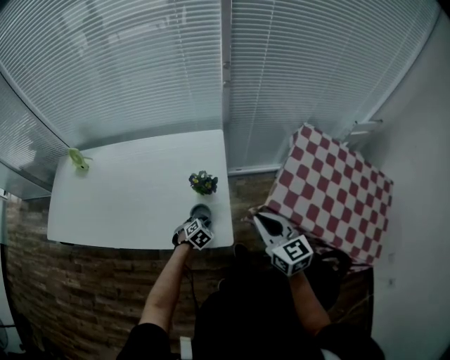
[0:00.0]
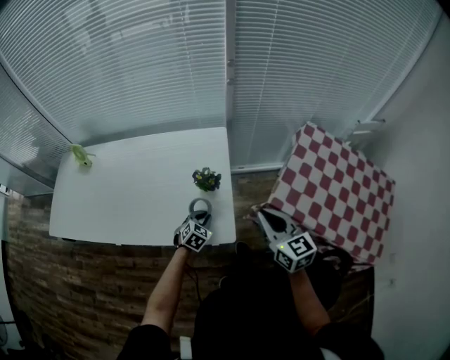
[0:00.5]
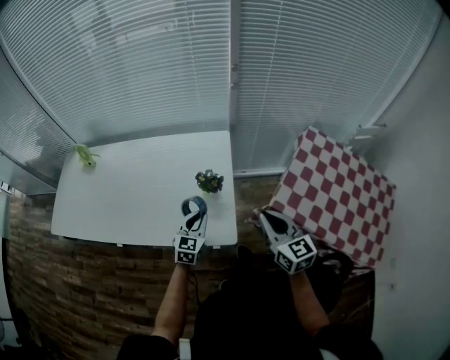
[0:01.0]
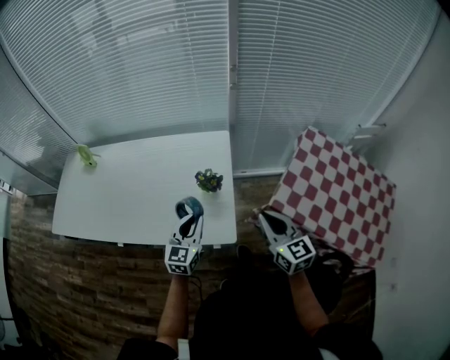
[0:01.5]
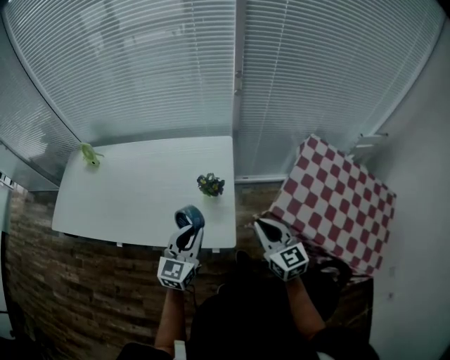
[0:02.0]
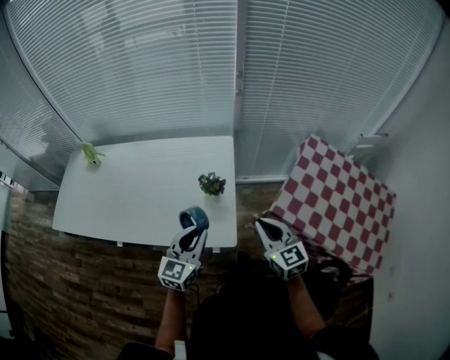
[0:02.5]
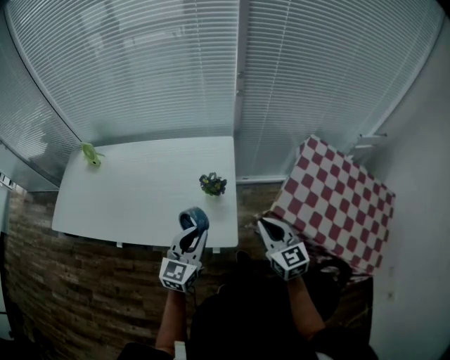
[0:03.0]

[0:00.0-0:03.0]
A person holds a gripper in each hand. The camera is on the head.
0:00.0 to 0:01.5: The left gripper travels upward by some 25 cm, and points its fingers roughly 50 degrees further upward.
0:01.5 to 0:03.0: The left gripper travels upward and backward by some 5 cm.

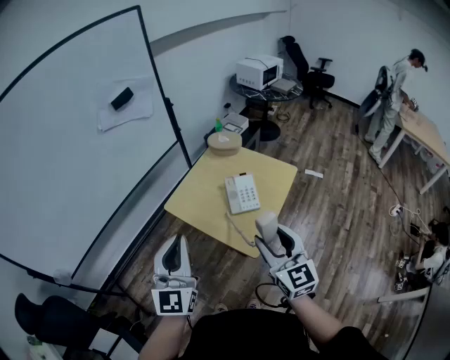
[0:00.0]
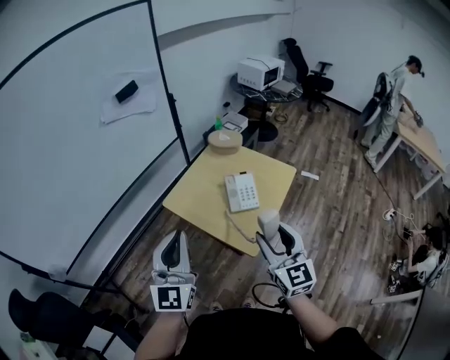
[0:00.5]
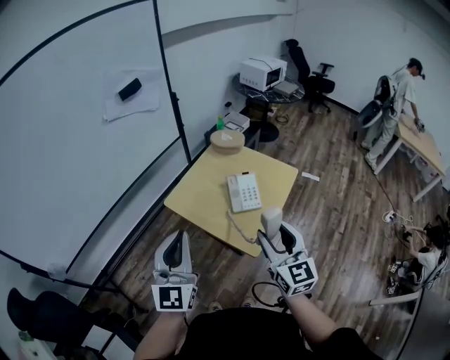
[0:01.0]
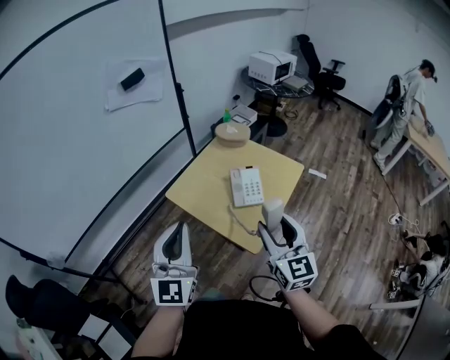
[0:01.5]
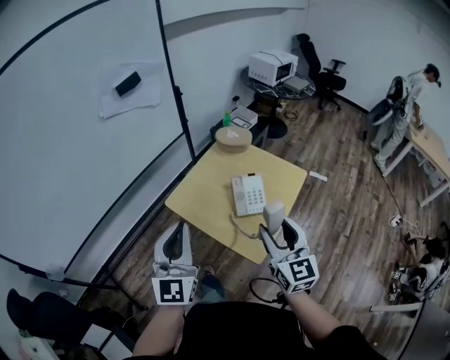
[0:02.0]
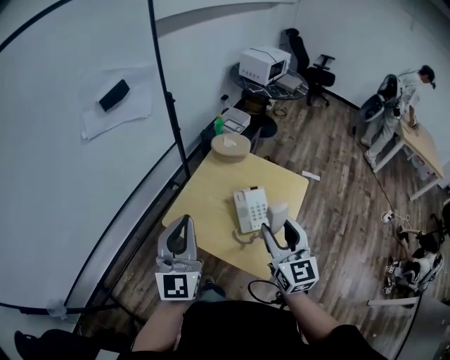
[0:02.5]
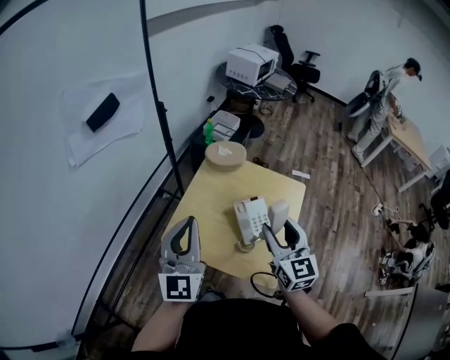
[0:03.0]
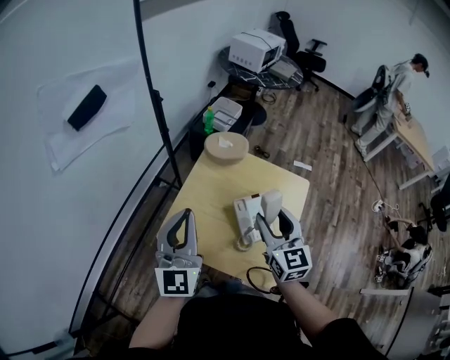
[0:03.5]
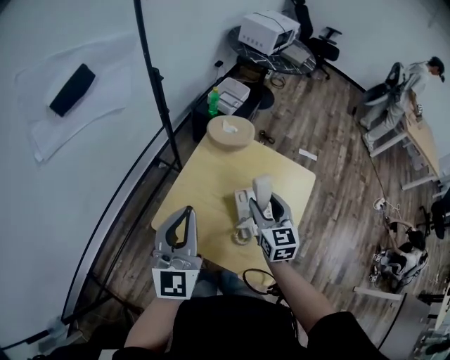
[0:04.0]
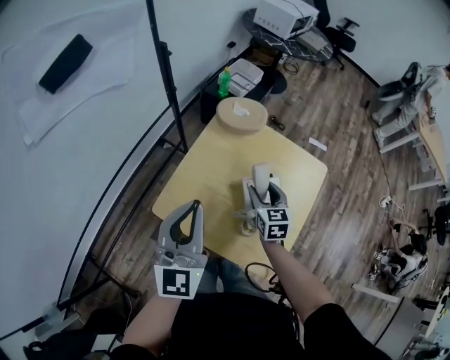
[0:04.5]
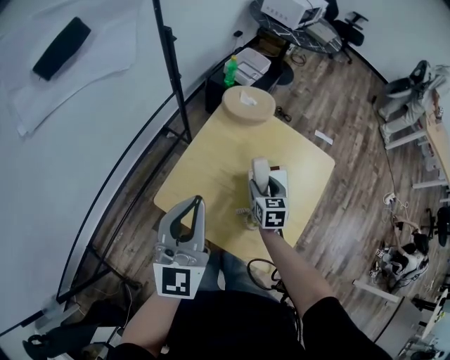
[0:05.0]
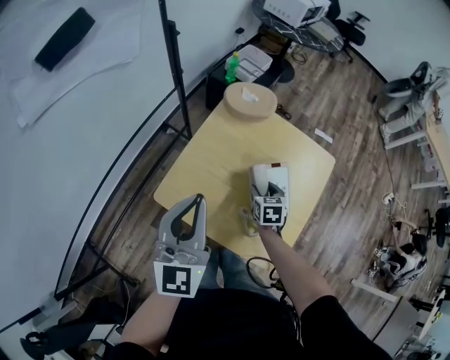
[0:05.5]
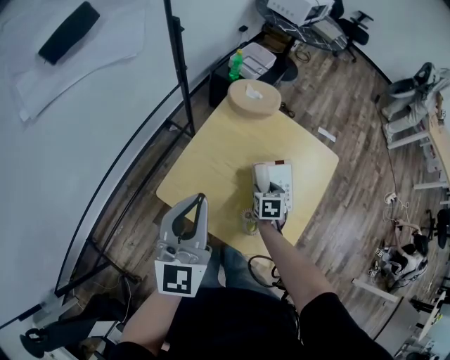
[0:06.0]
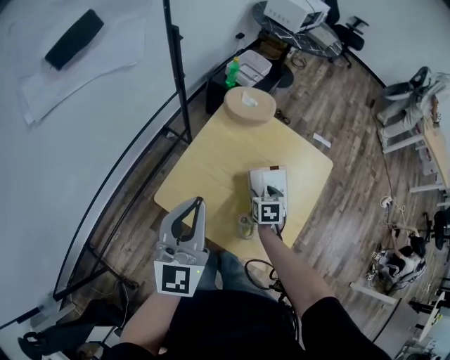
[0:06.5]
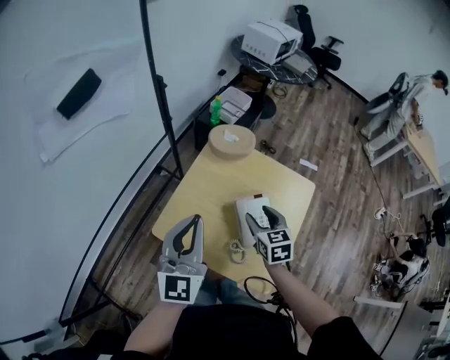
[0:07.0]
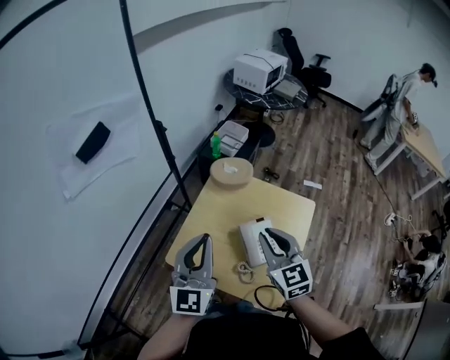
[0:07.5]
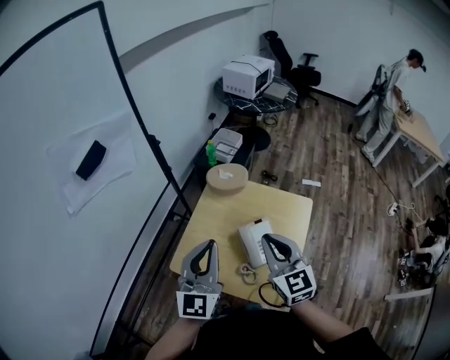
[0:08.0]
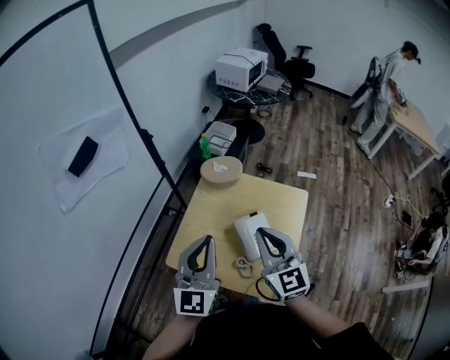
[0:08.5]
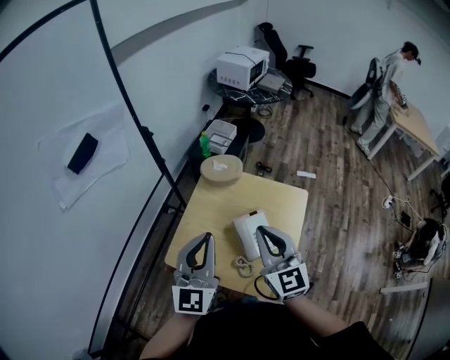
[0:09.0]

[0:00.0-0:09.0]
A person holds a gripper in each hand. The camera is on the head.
0:00.0 to 0:02.0: The grippers both shift forward by some 10 cm.
0:02.0 to 0:04.5: The left gripper moves forward, about 30 cm; the right gripper goes about 40 cm forward and downward, and changes its angle by about 30 degrees.
0:04.5 to 0:07.0: The right gripper travels downward and back again, about 15 cm each way.
0:07.0 to 0:09.0: The right gripper shifts approximately 20 cm upward, tips its fingers upward by about 30 degrees, and closes its fingers. Meanwhile the left gripper shifts approximately 10 cm upward and to the right.

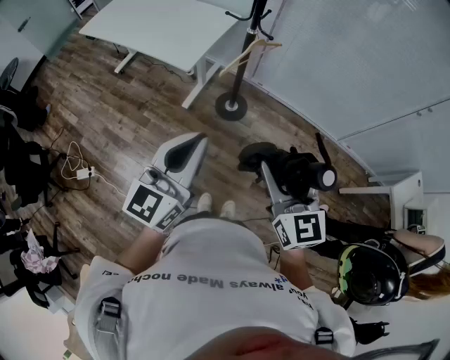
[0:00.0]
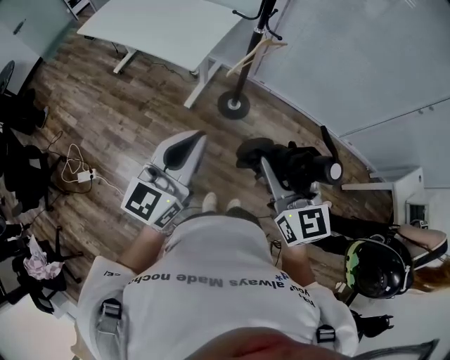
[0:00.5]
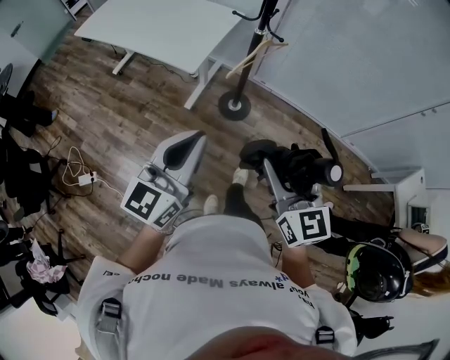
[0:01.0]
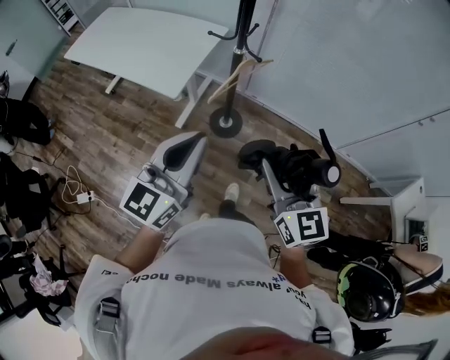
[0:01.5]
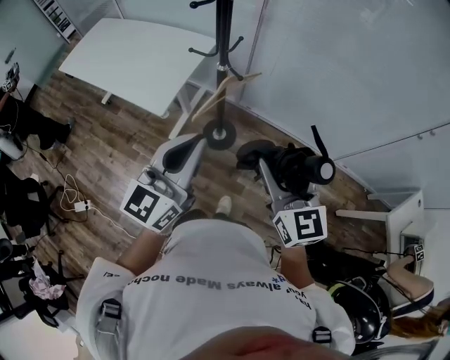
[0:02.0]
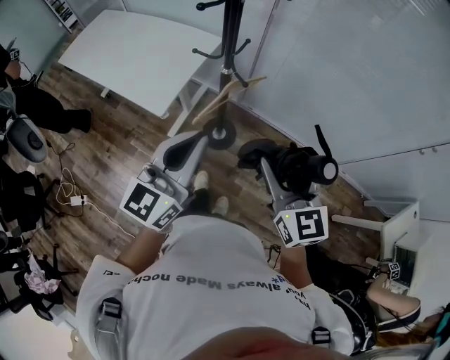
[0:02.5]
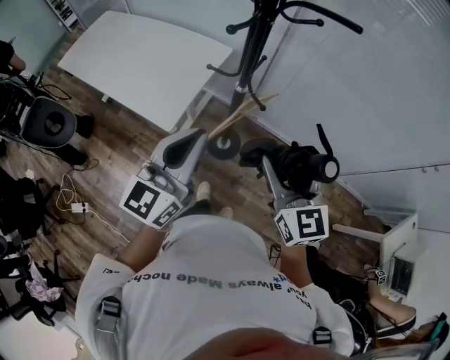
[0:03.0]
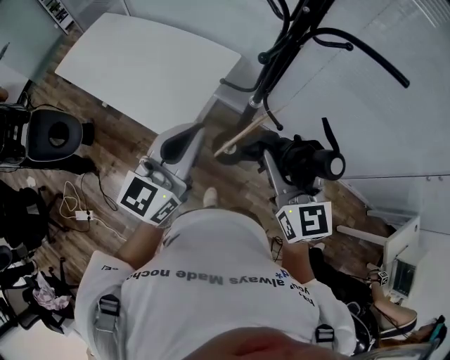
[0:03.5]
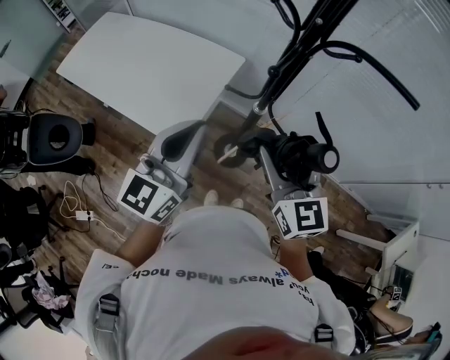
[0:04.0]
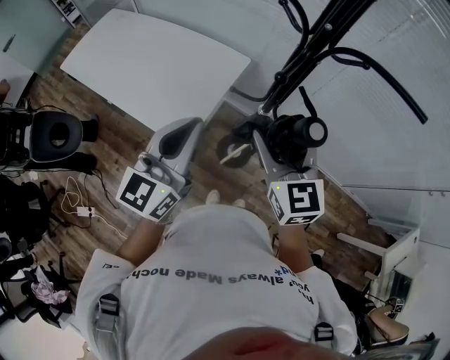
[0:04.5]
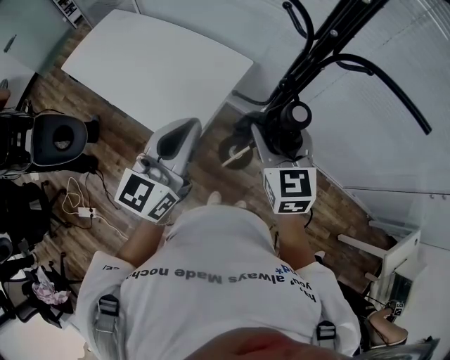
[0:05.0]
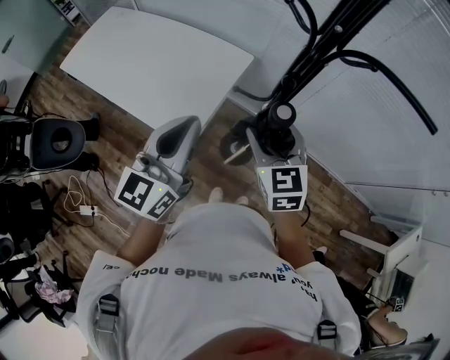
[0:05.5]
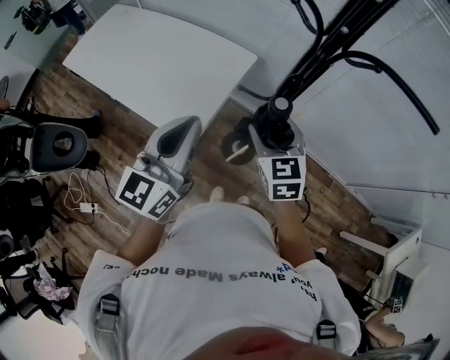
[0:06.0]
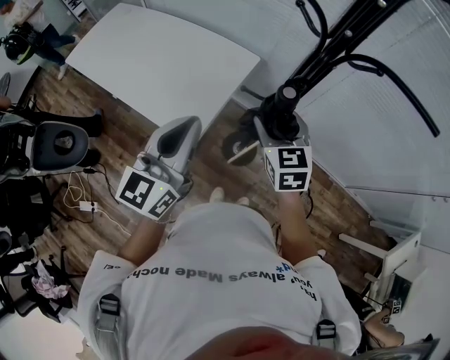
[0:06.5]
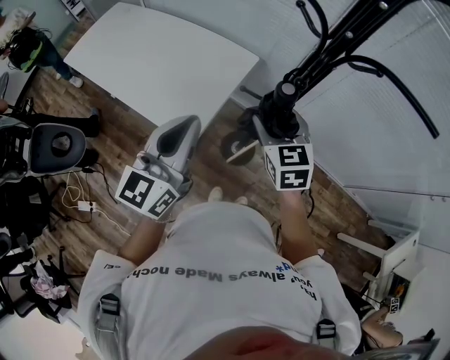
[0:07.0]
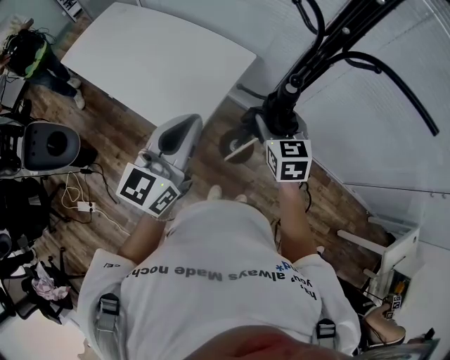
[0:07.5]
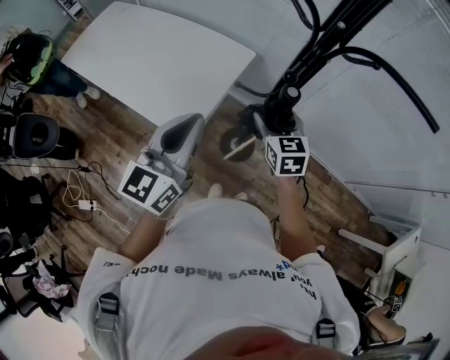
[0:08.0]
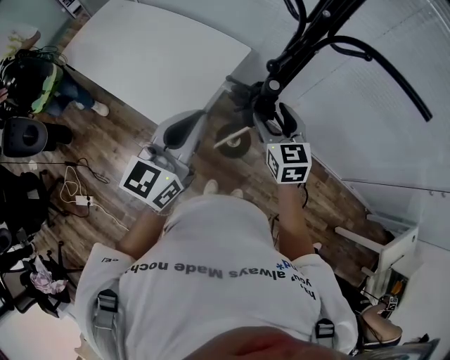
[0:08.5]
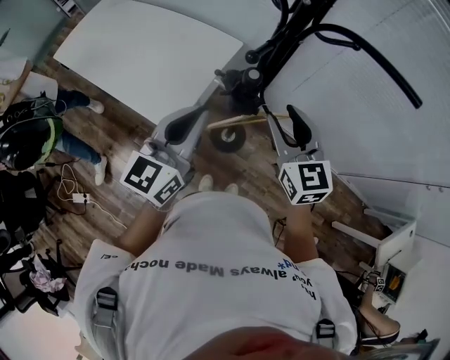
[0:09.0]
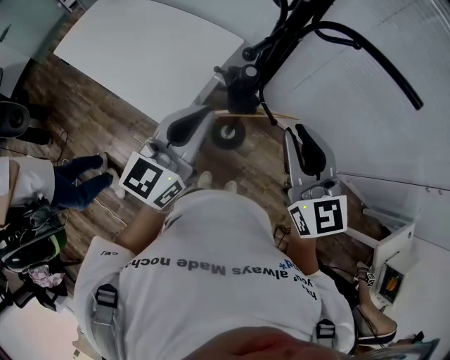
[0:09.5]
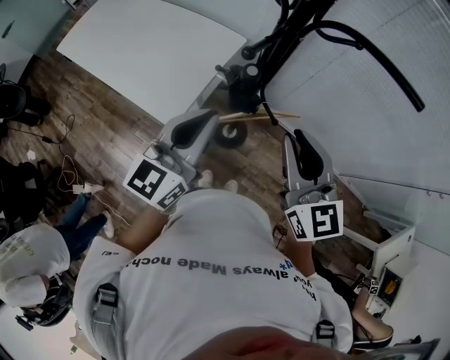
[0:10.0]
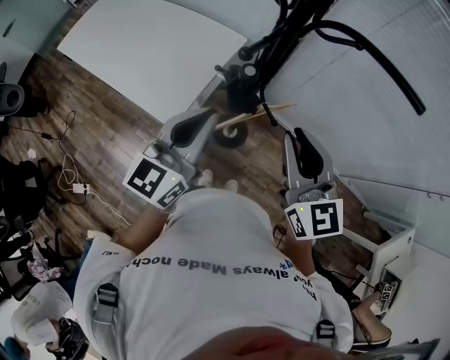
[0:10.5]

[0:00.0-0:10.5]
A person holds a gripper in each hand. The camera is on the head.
0:00.0 to 0:02.0: The grippers both shift forward by some 25 cm.
0:02.0 to 0:04.0: Both grippers move forward and to the left, some 35 cm.
0:04.0 to 0:06.5: The left gripper changes place by approximately 5 cm. Meanwhile the right gripper is displaced forward and downward by roughly 15 cm.
0:06.5 to 0:08.5: The left gripper goes approximately 5 cm to the right. Meanwhile the right gripper changes place by roughly 5 cm.
0:08.5 to 0:10.5: The right gripper is displaced upward, backward and to the right by roughly 15 cm, and closes its fingers. Meanwhile the left gripper goes some 5 cm to the right.

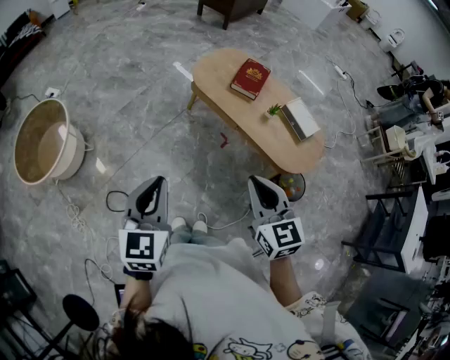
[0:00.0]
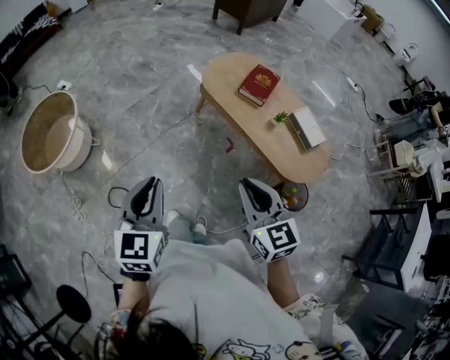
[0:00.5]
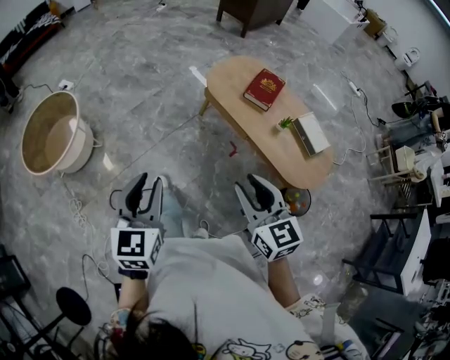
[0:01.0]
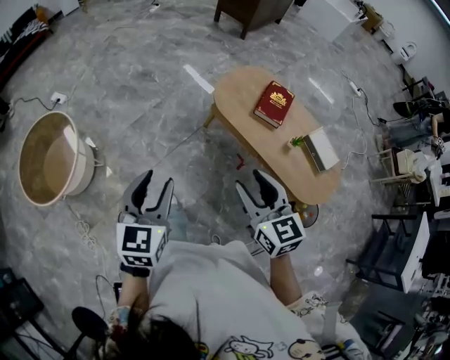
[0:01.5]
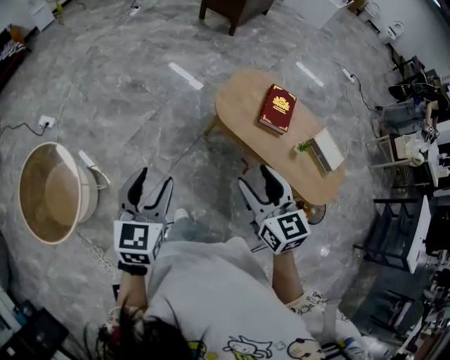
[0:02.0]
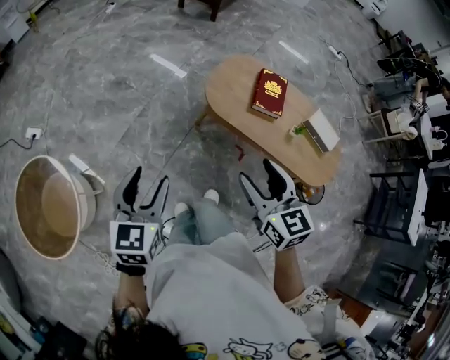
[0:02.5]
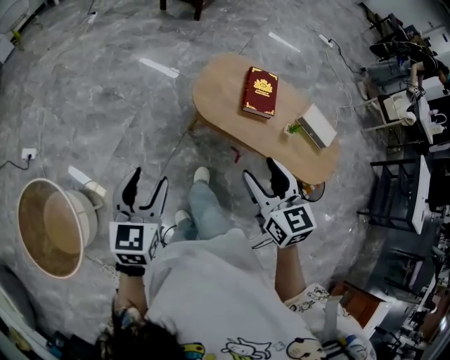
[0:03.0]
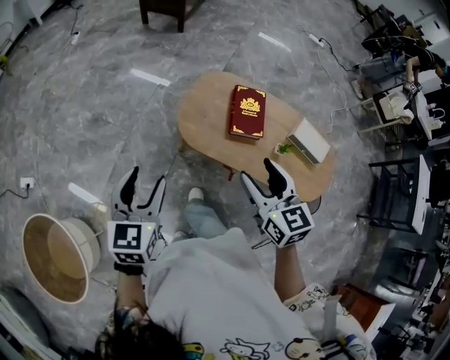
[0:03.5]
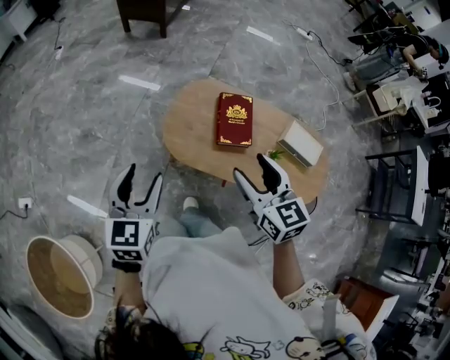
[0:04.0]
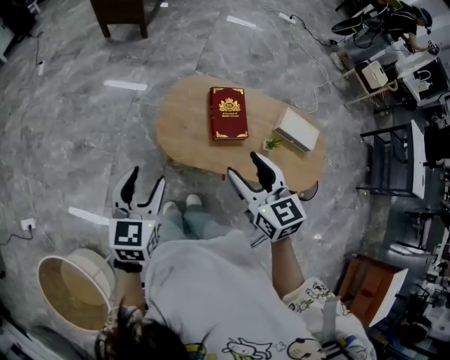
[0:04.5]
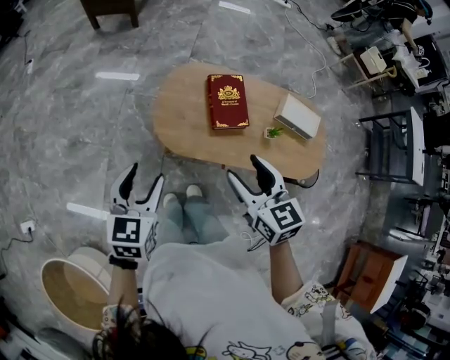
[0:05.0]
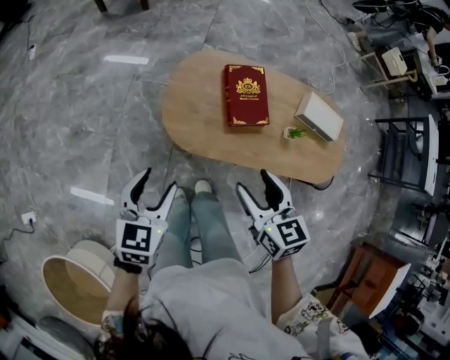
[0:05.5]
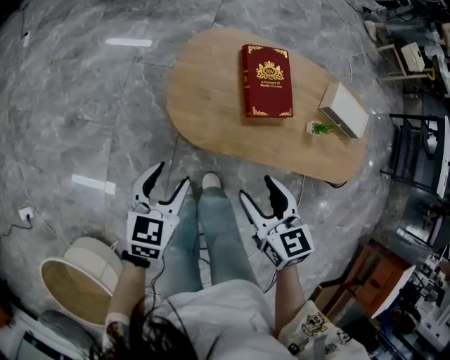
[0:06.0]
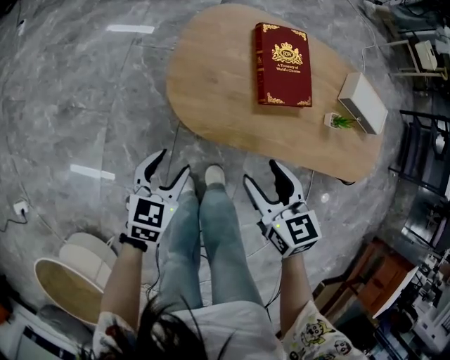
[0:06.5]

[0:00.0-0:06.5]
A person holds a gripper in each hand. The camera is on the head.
0:00.0 to 0:02.0: Both grippers move forward and to the left, some 35 cm. The left gripper opens up, while the right gripper opens.
0:02.0 to 0:04.5: The right gripper goes roughly 25 cm forward and to the right, and swivels approximately 20 degrees. The left gripper is displaced forward by about 30 cm, and changes its angle by approximately 30 degrees.
0:04.5 to 0:06.5: The two grippers go some 35 cm downward. The left gripper rotates approximately 20 degrees.
